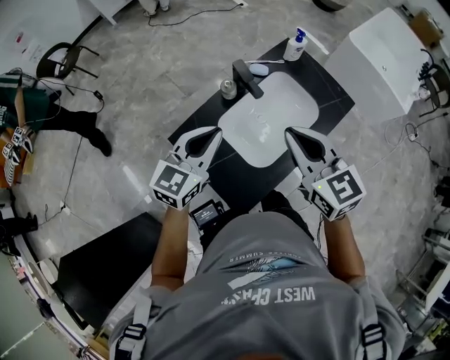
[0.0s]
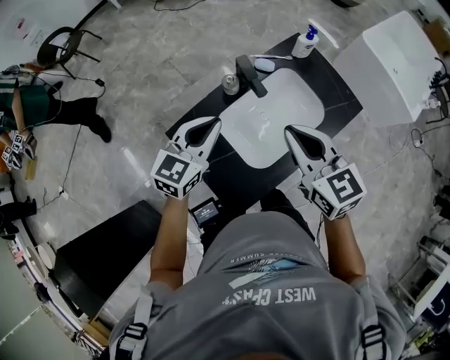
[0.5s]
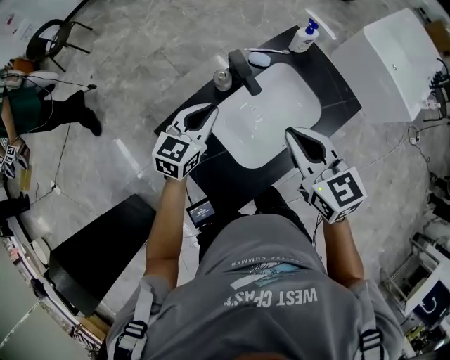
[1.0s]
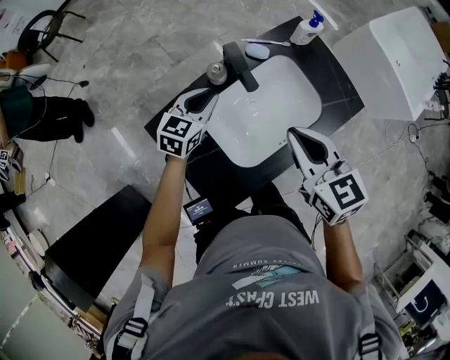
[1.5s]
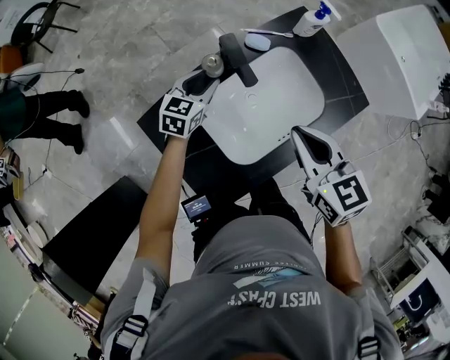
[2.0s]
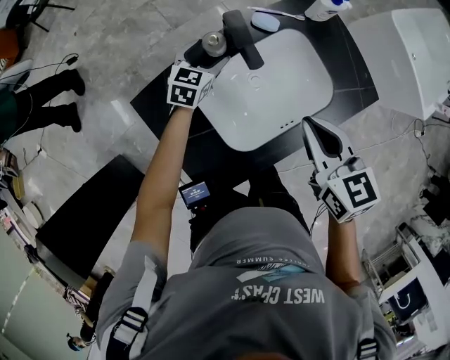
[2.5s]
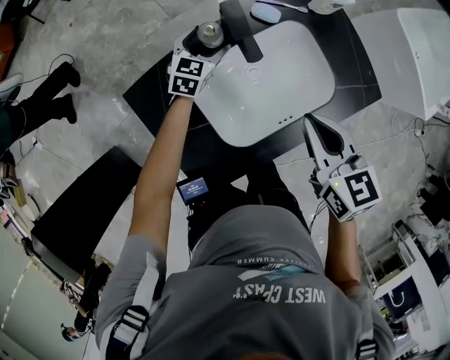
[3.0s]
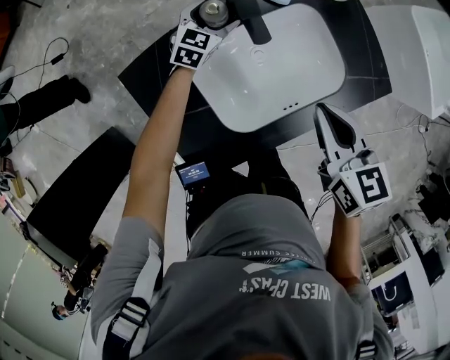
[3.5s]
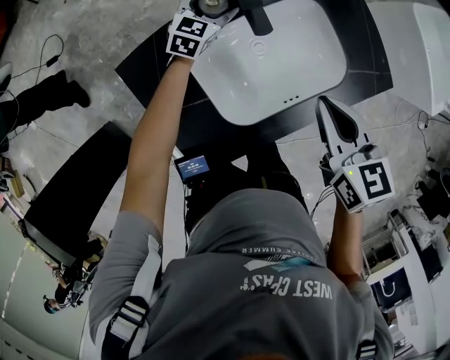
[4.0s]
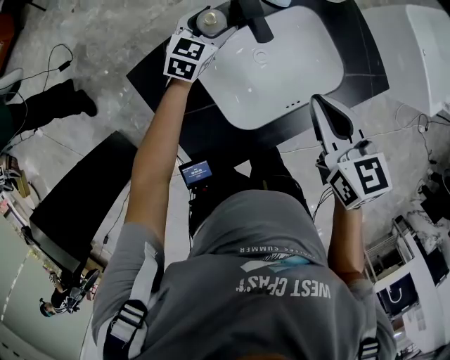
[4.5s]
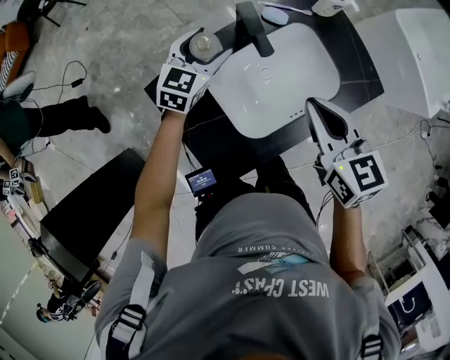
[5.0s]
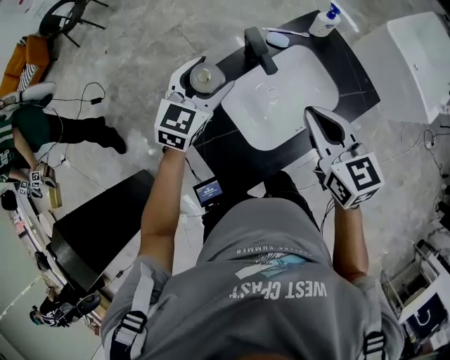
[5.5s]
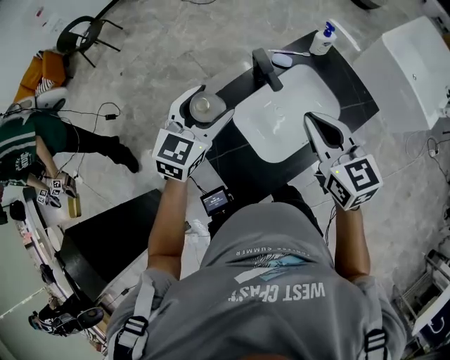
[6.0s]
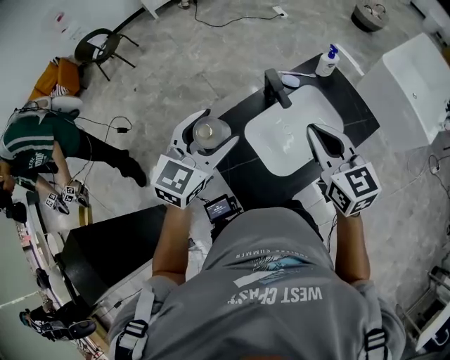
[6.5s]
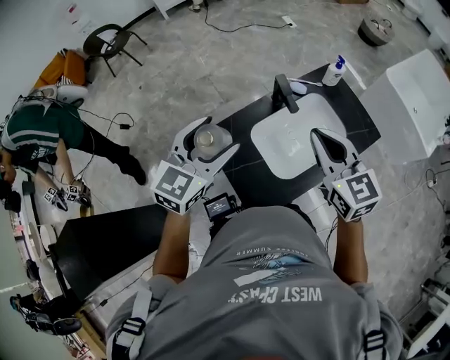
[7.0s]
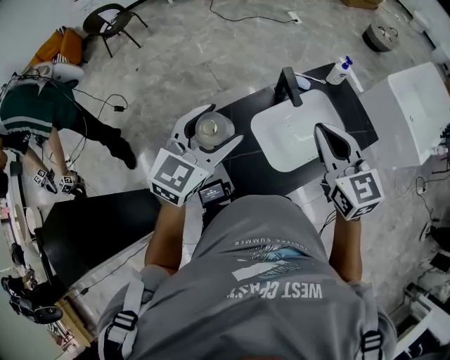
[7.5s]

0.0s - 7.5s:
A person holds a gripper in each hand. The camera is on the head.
0.0s - 2.0s: The right gripper is displaced downward, forward and to the right by roughly 15 cm. The left gripper goes roughly 30 cm downward and forward, rotates roughly 20 degrees, and opens up.
2.0s - 4.0s: The left gripper travels forward and downward by about 10 cm, and opens.
4.0s - 5.5s: The right gripper heads upward, covering approximately 10 cm, while the left gripper heads upward and backward, covering about 25 cm.
5.5s - 7.5s: The right gripper travels upward and to the left by roughly 10 cm; the left gripper heads backward, upward and to the left, covering approximately 20 cm.

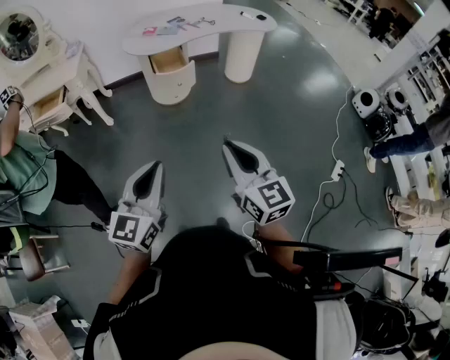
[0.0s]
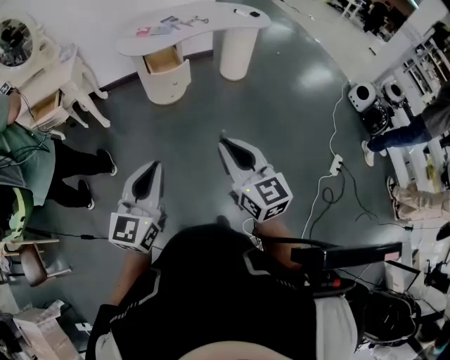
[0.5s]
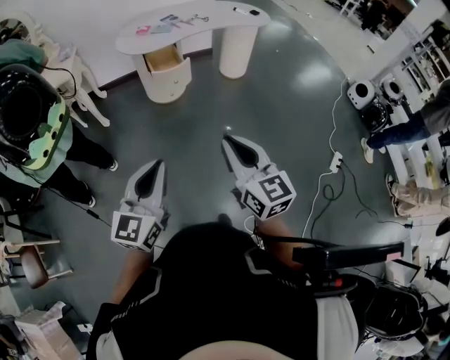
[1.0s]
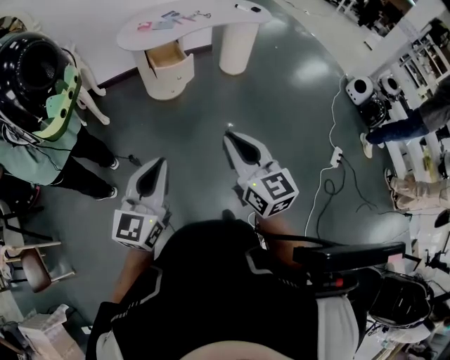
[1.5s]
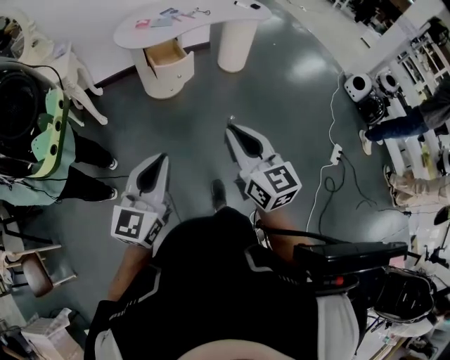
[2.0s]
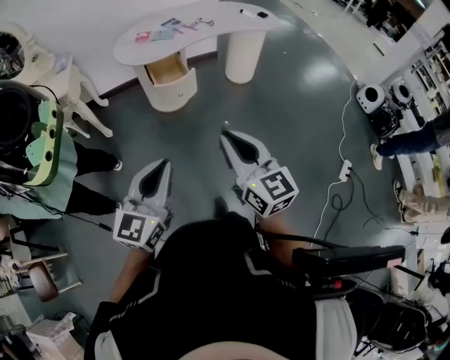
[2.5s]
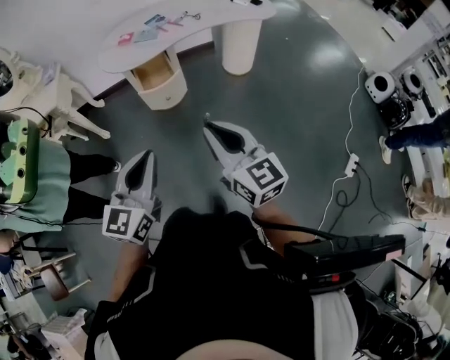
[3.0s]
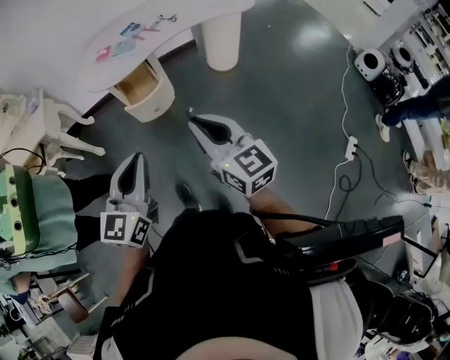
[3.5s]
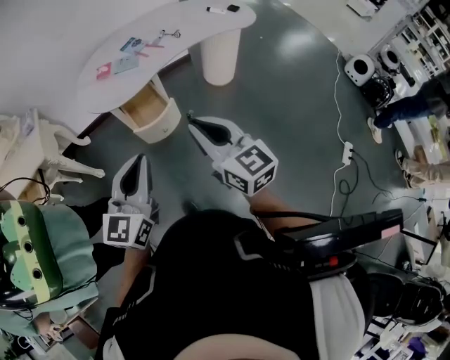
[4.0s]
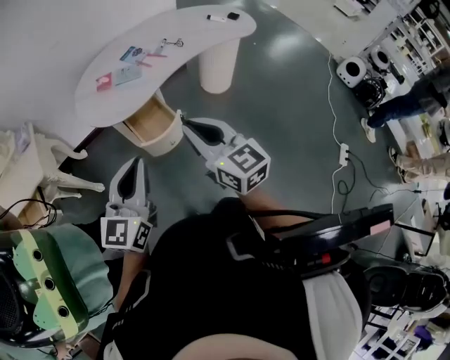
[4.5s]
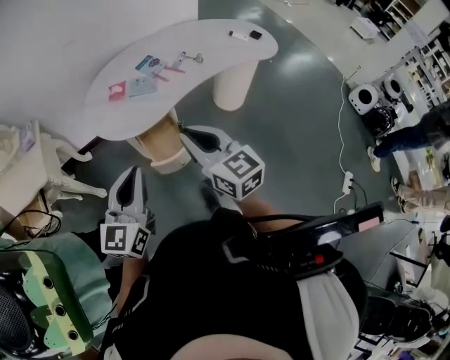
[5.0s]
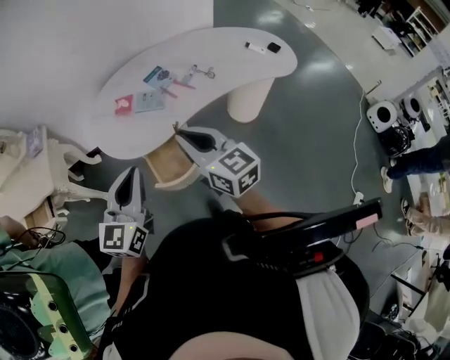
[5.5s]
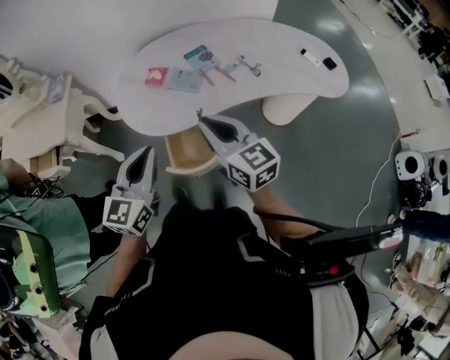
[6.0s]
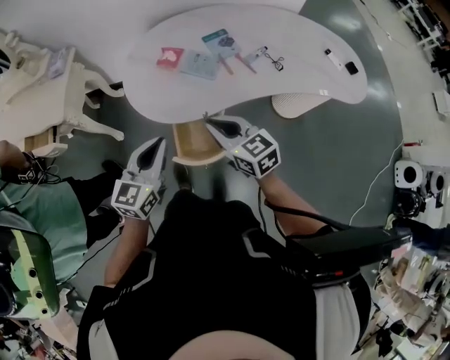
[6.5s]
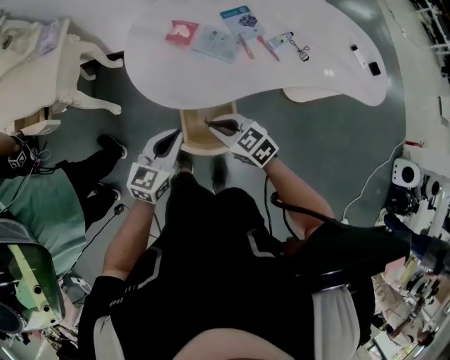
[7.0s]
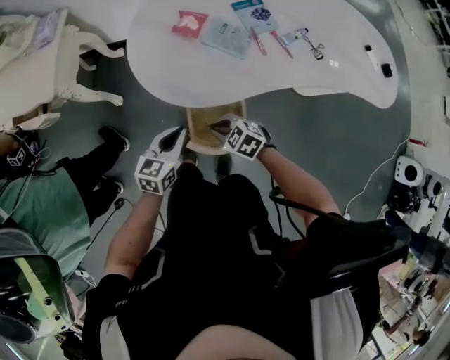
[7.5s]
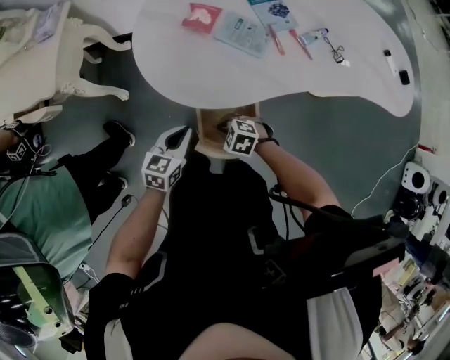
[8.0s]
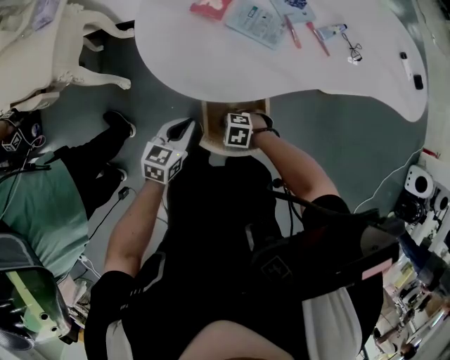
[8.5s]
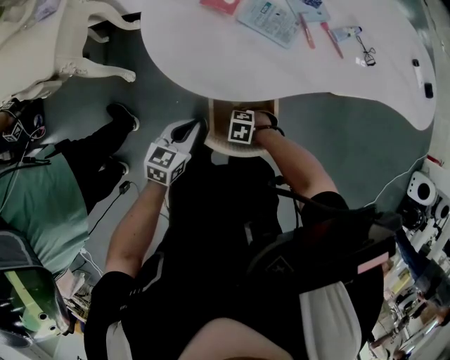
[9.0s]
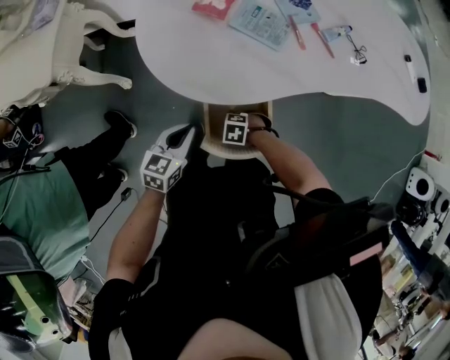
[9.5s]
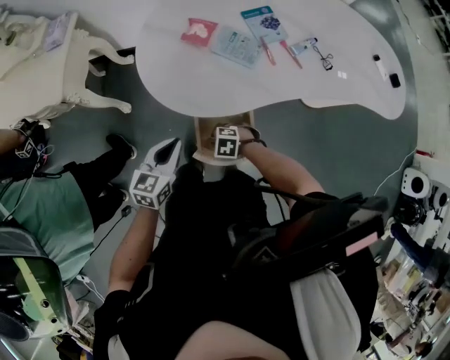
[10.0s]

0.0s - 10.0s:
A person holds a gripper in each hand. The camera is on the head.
0.0s - 2.0s: Both grippers travel together to the left, approximately 5 cm.
2.0s - 4.0s: Both grippers move forward, roughly 40 cm.
4.0s - 6.0s: The grippers both shift forward by about 35 cm. The right gripper turns by approximately 20 degrees.
6.0s - 8.0s: The two grippers go about 35 cm downward. The left gripper changes its angle by about 30 degrees. The right gripper tips its fingers downward by roughly 50 degrees.
8.0s - 10.0s: The right gripper reaches roughly 10 cm downward, then returns. The left gripper shifts some 5 cm upward.

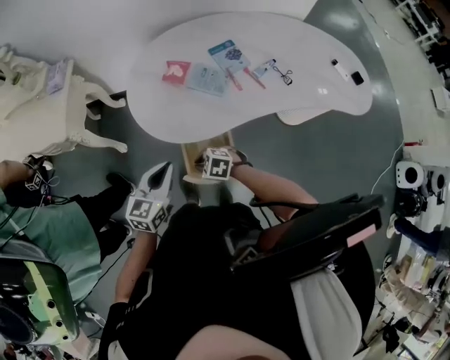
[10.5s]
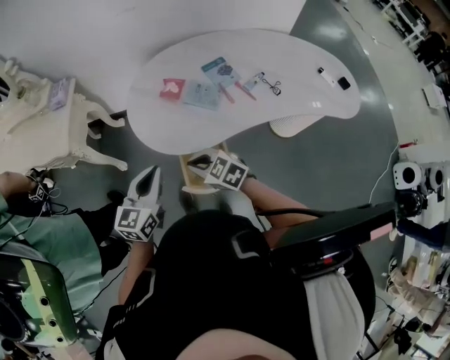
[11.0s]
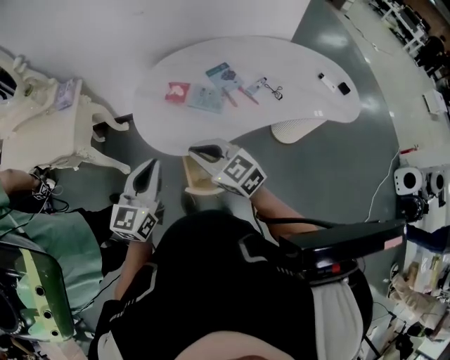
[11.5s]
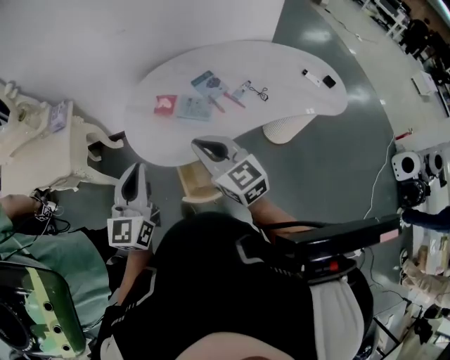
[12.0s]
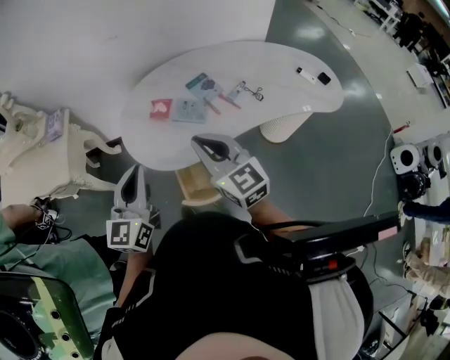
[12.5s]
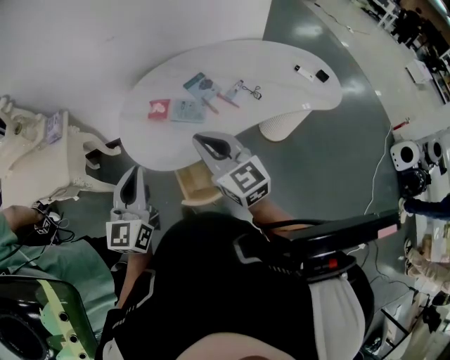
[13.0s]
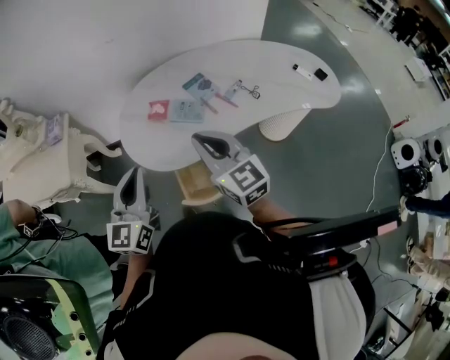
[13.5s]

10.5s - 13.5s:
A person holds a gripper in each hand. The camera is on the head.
10.5s - 12.0s: The right gripper goes roughly 30 cm upward, and angles its fingers upward, by about 50 degrees; the left gripper shifts about 20 cm upward, and changes its angle by roughly 30 degrees.
12.0s - 13.5s: The grippers stay close to where they were, moving slightly.

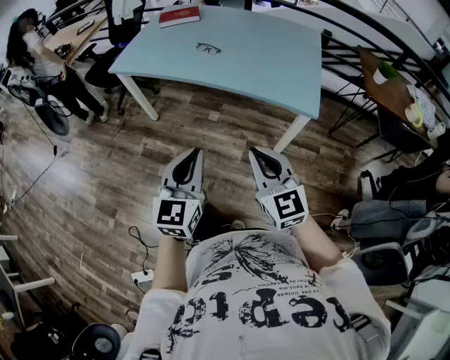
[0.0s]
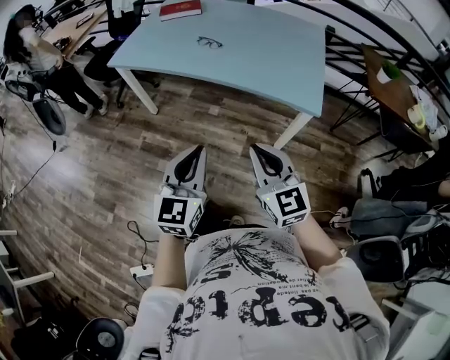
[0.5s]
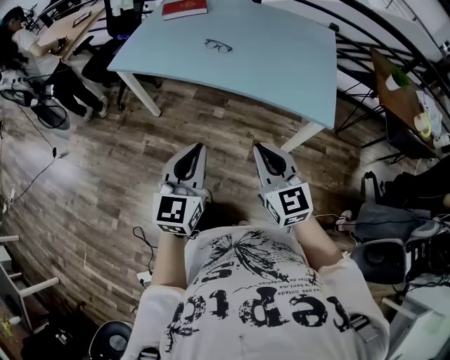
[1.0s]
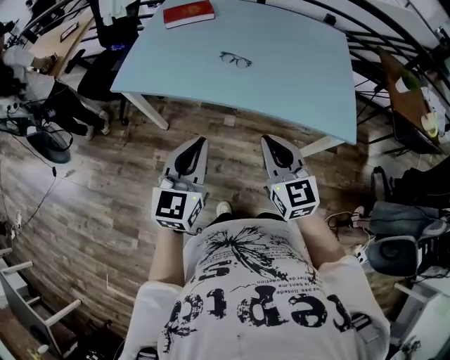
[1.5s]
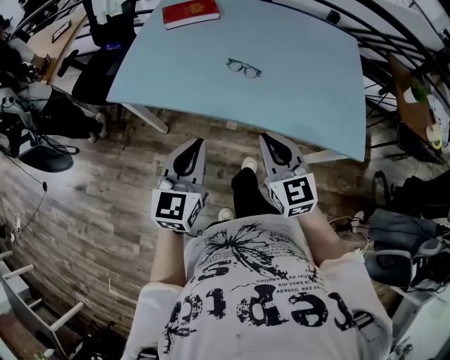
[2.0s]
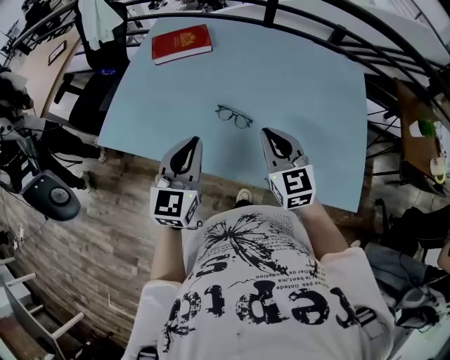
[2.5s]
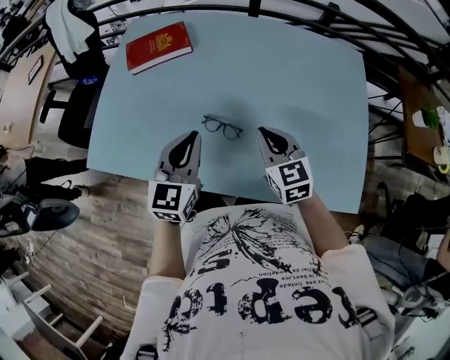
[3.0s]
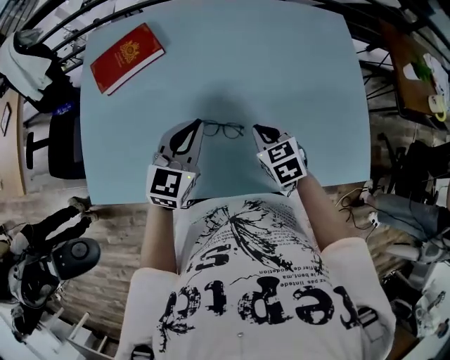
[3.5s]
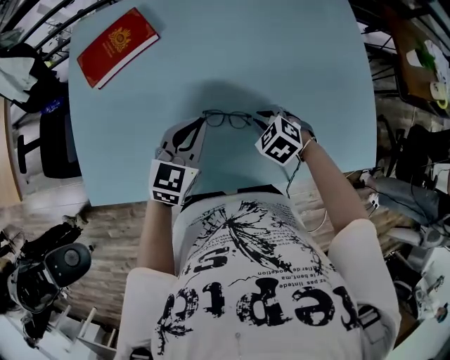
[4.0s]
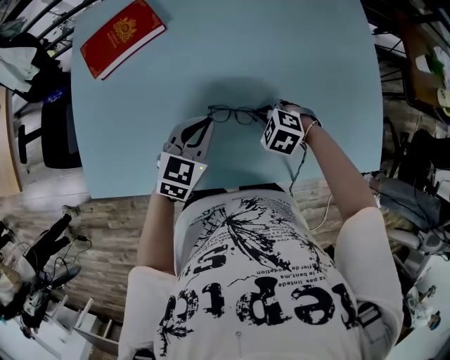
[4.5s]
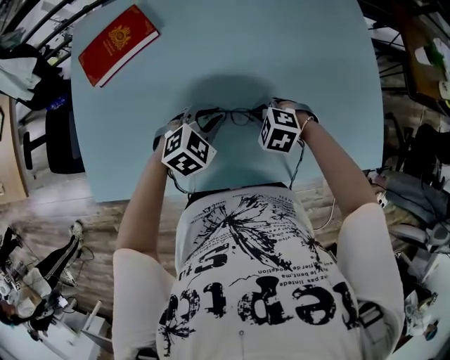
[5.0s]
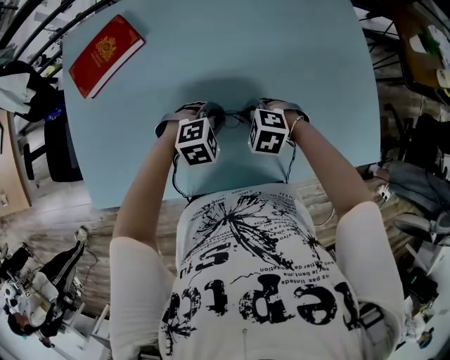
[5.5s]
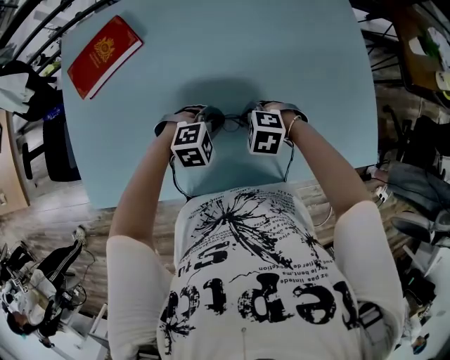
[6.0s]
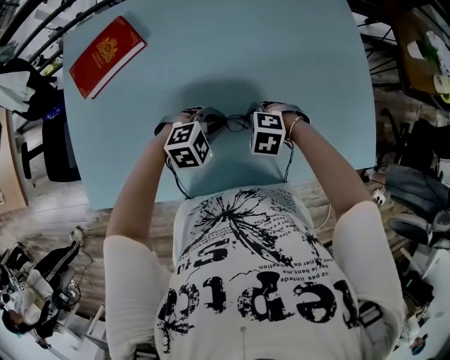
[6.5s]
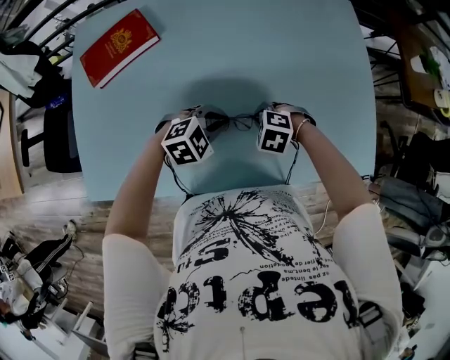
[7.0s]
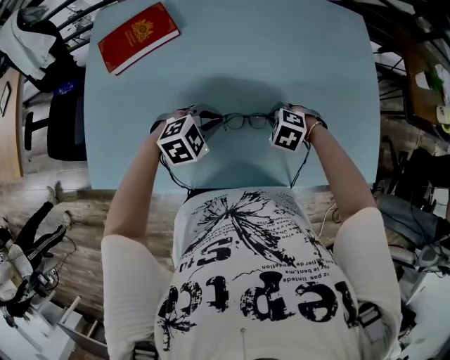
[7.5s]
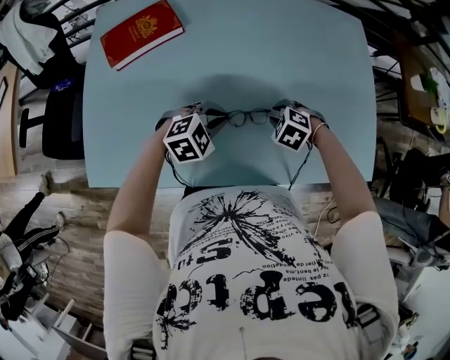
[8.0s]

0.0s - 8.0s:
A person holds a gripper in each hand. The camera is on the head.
0.0s - 2.0s: Both grippers are carried forward and to the left, some 40 cm.
2.0s - 4.0s: The left gripper goes about 40 cm forward, and turns by roughly 30 degrees. Meanwhile the right gripper is displaced forward and downward by roughly 40 cm, and tilts its fingers some 50 degrees downward.
4.0s - 6.0s: The right gripper rotates about 20 degrees. Meanwhile the left gripper is displaced downward by roughly 10 cm, and angles its fingers downward, by some 30 degrees.
6.0s - 8.0s: The right gripper opens up; the left gripper ends up about 10 cm from where it was.
